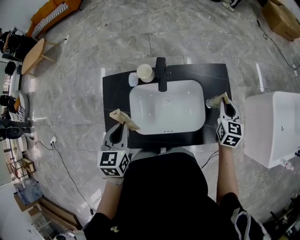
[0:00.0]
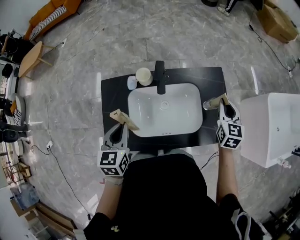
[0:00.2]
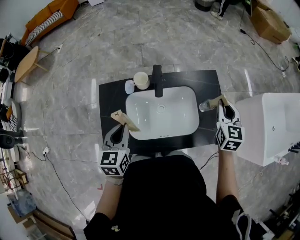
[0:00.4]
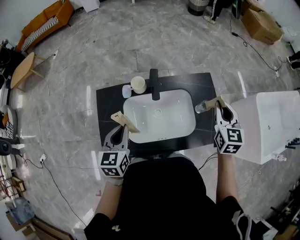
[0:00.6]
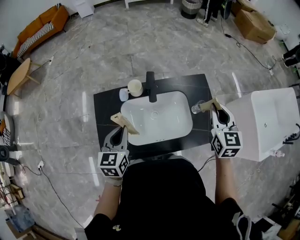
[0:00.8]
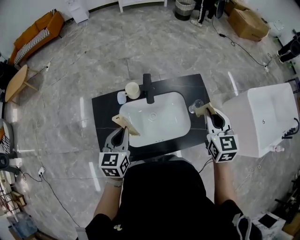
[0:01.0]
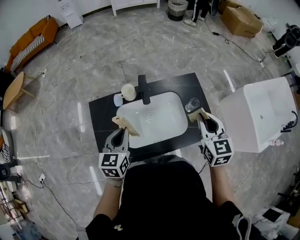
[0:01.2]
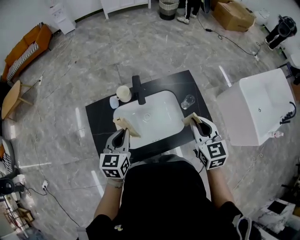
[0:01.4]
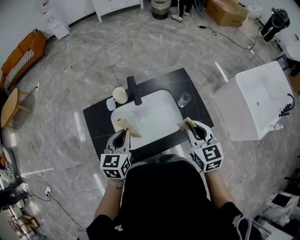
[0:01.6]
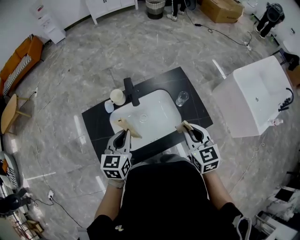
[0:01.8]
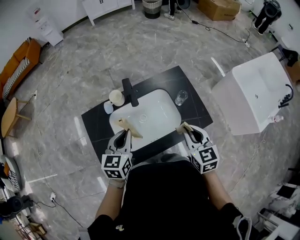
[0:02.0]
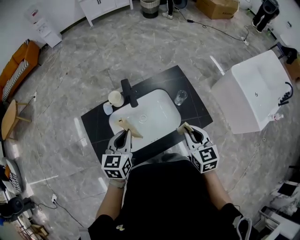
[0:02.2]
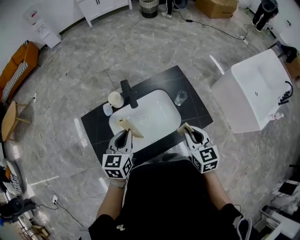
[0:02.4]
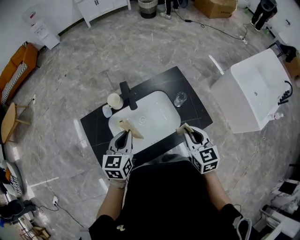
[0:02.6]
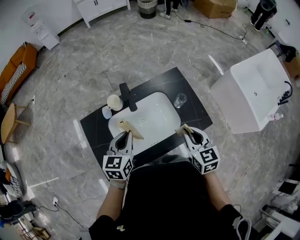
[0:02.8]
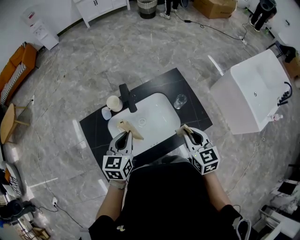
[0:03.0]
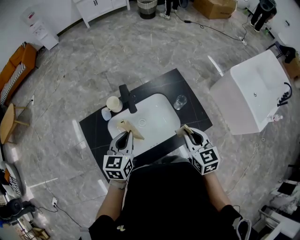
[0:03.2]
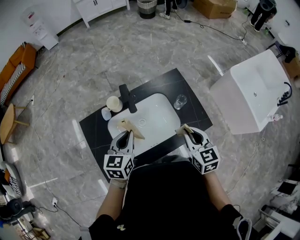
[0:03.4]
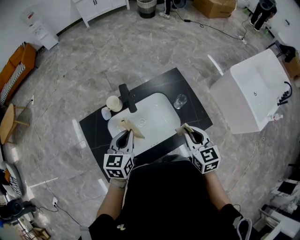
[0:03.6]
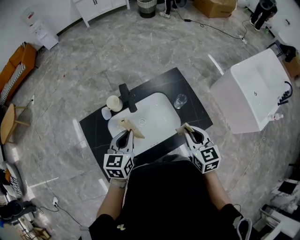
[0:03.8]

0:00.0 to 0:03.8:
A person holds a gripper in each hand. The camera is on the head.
0:00.0 to 0:01.2: The right gripper travels upward, backward and to the left by approximately 20 cm.
0:01.2 to 0:02.6: The right gripper moves downward and backward, about 10 cm, while the left gripper goes about 5 cm to the right.
0:02.6 to 0:03.8: There are only small adjustments of the grippers.

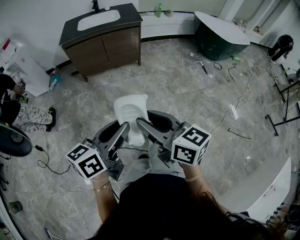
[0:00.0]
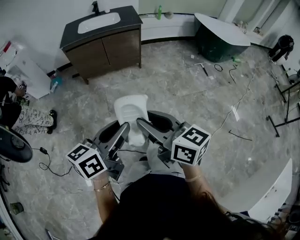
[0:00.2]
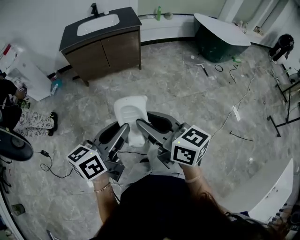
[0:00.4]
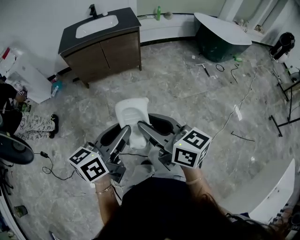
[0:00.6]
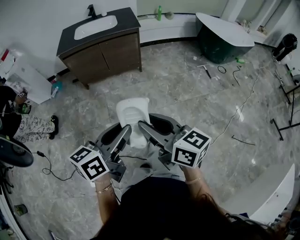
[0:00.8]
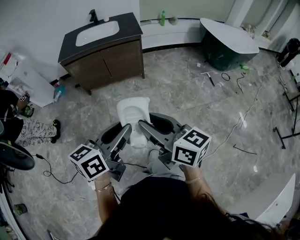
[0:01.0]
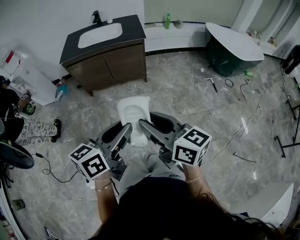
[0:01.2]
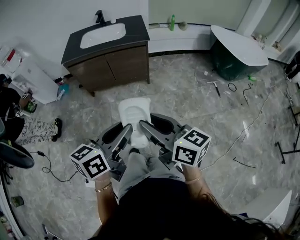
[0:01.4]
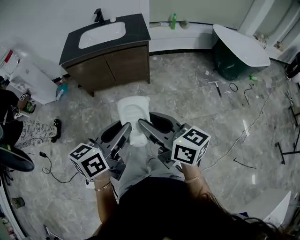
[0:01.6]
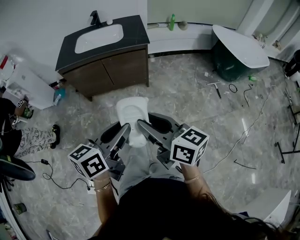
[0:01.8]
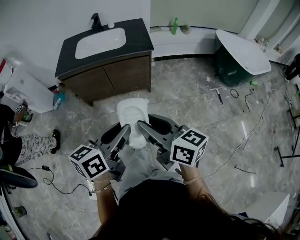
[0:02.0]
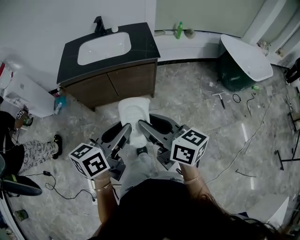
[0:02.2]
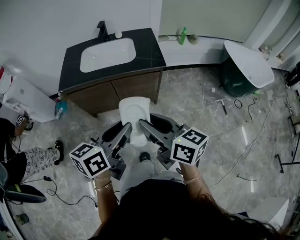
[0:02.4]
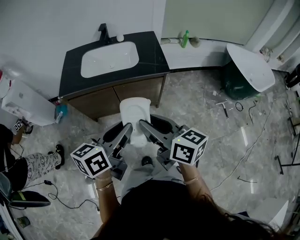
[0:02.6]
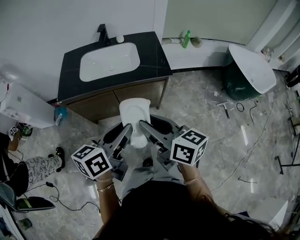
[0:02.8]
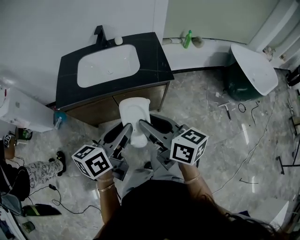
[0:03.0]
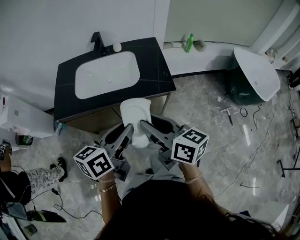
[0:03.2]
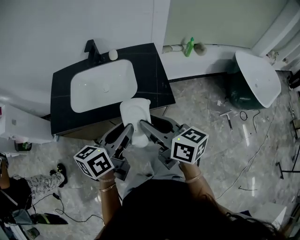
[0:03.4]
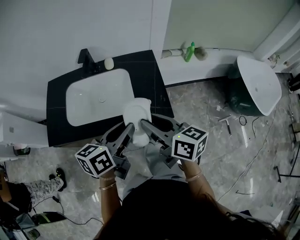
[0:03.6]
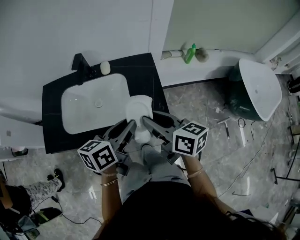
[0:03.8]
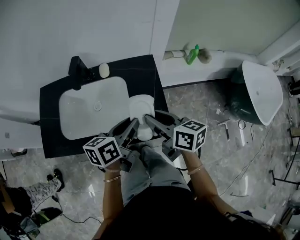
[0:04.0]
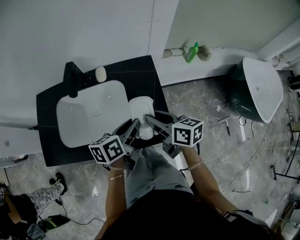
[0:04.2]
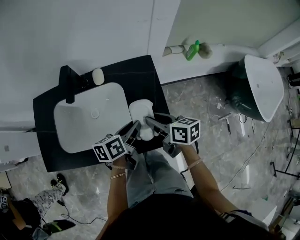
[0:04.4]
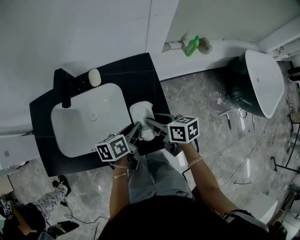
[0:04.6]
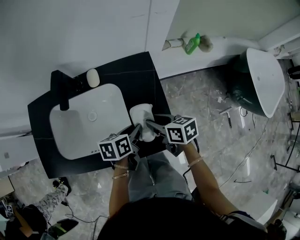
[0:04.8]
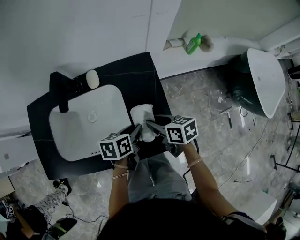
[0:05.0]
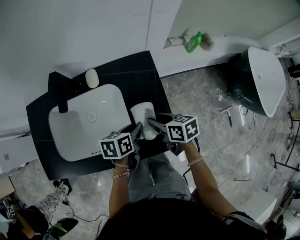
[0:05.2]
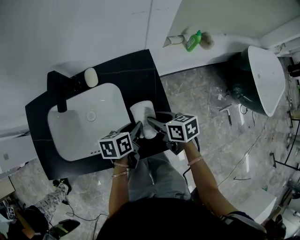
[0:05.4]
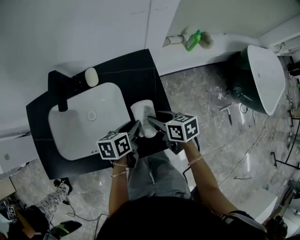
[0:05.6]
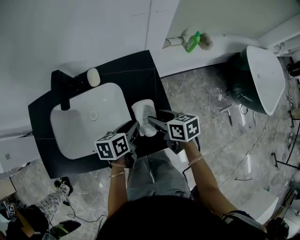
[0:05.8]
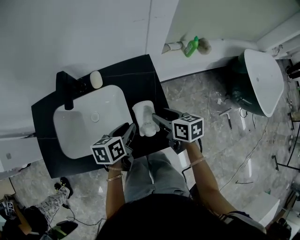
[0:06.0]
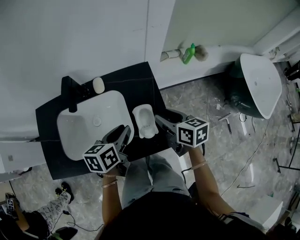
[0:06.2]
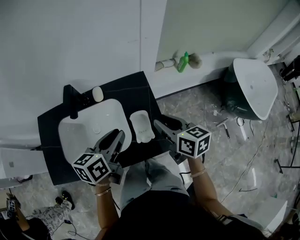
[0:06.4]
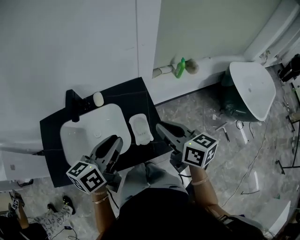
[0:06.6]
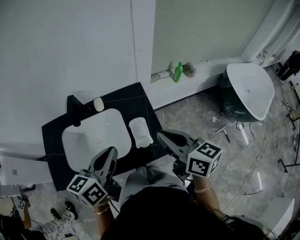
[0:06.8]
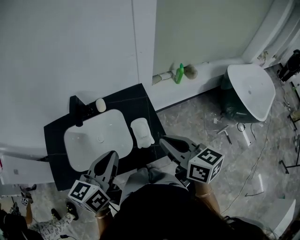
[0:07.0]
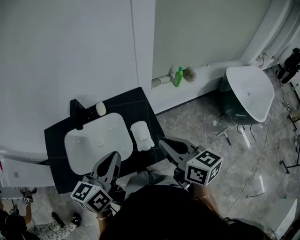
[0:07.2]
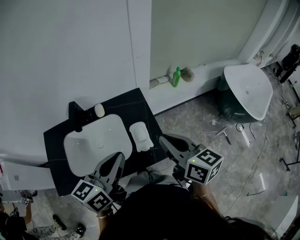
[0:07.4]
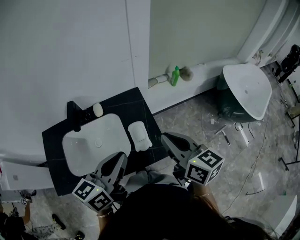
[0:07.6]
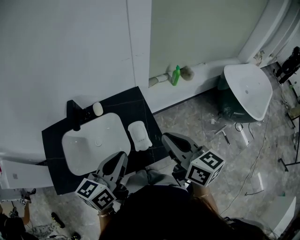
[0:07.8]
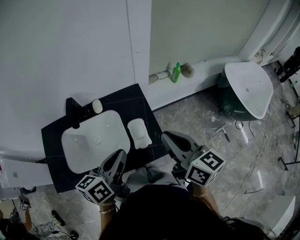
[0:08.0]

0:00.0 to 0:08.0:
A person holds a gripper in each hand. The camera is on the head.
0:00.0 to 0:01.6: The two grippers go approximately 25 cm forward.
0:01.6 to 0:03.2: The pair of grippers is taken forward, approximately 50 cm.
0:03.2 to 0:04.8: Both grippers move forward and downward, roughly 40 cm. The left gripper changes its angle by some 30 degrees; the right gripper changes its angle by about 30 degrees.
0:04.8 to 0:06.4: The grippers both shift upward by approximately 15 cm. The right gripper changes its angle by approximately 20 degrees. Meanwhile the left gripper changes its angle by roughly 20 degrees.
0:06.4 to 0:08.0: The right gripper heads upward and backward, covering roughly 15 cm, and closes its fingers. Meanwhile the left gripper heads backward and upward, covering some 10 cm, and closes up.

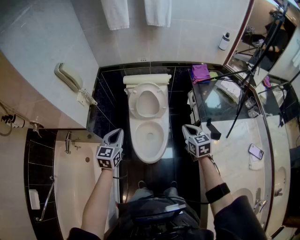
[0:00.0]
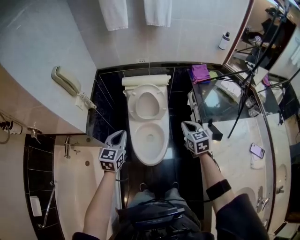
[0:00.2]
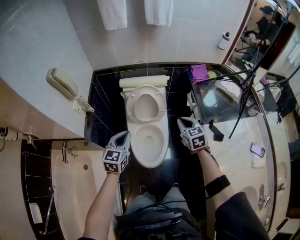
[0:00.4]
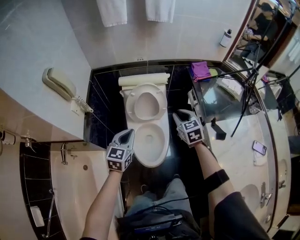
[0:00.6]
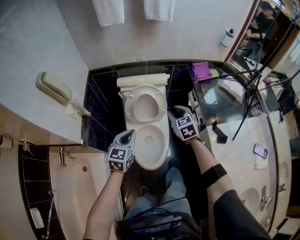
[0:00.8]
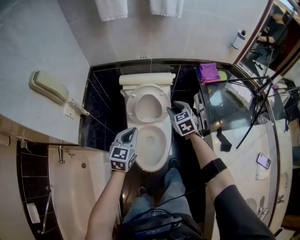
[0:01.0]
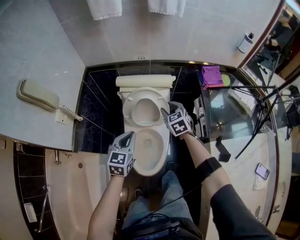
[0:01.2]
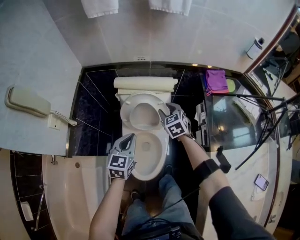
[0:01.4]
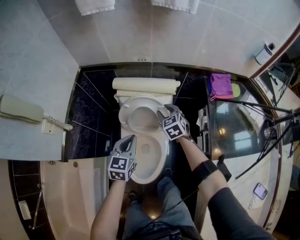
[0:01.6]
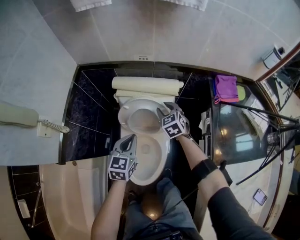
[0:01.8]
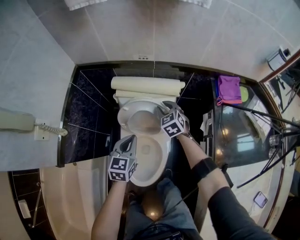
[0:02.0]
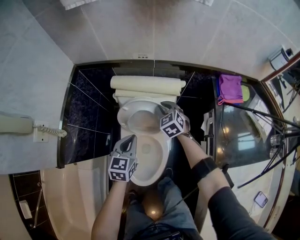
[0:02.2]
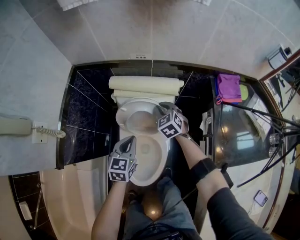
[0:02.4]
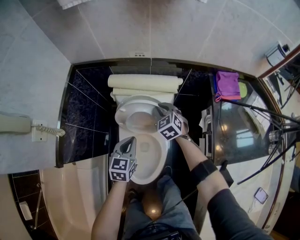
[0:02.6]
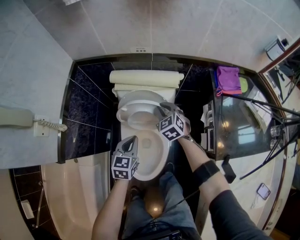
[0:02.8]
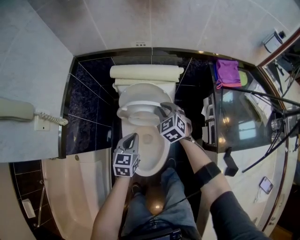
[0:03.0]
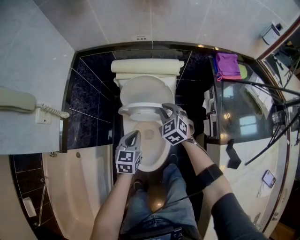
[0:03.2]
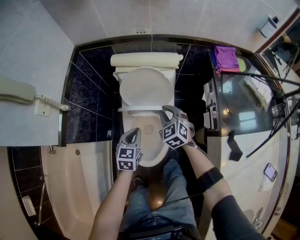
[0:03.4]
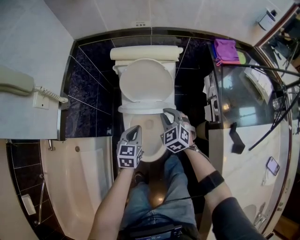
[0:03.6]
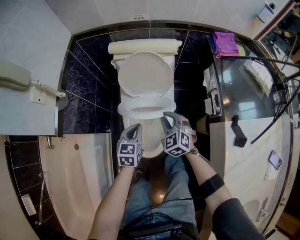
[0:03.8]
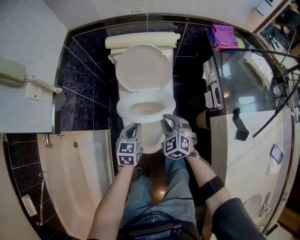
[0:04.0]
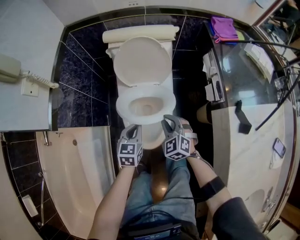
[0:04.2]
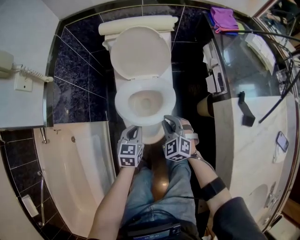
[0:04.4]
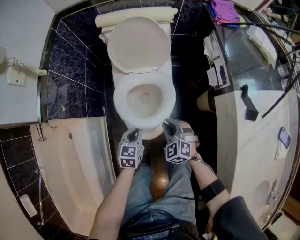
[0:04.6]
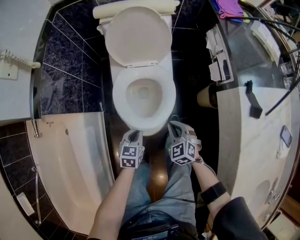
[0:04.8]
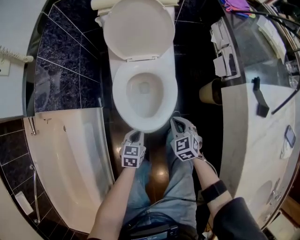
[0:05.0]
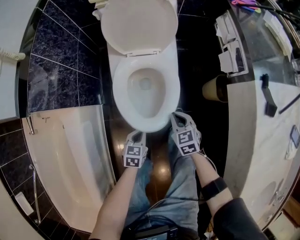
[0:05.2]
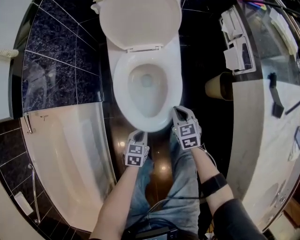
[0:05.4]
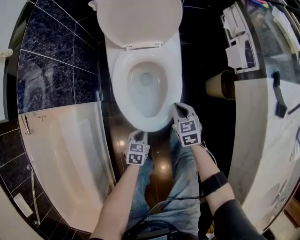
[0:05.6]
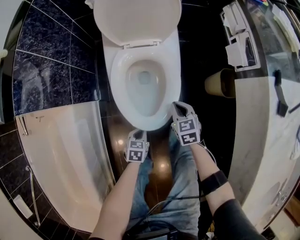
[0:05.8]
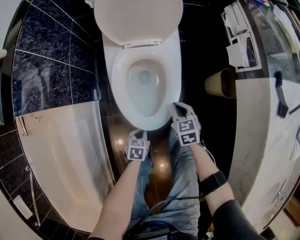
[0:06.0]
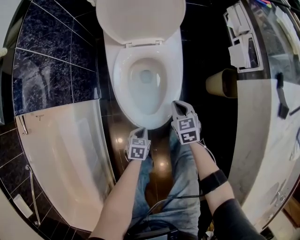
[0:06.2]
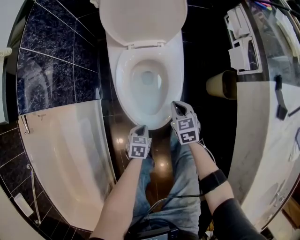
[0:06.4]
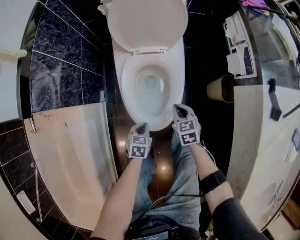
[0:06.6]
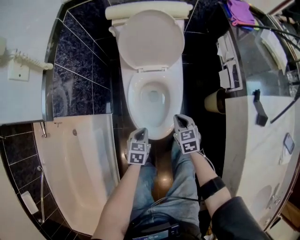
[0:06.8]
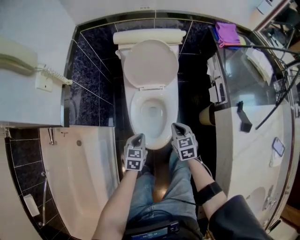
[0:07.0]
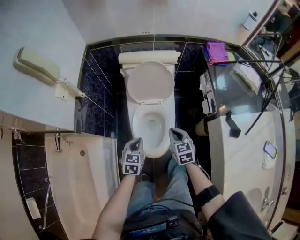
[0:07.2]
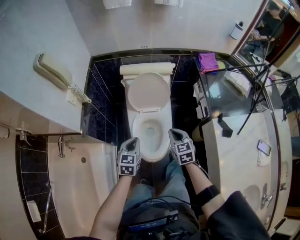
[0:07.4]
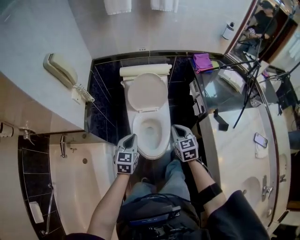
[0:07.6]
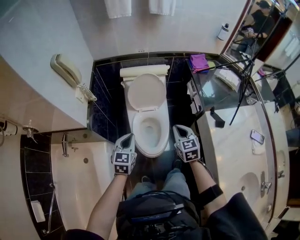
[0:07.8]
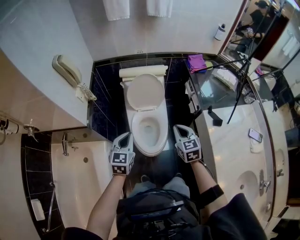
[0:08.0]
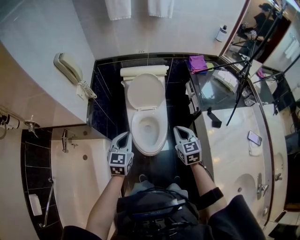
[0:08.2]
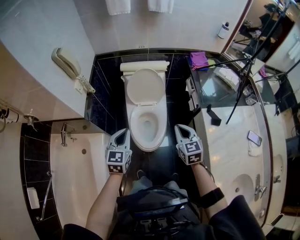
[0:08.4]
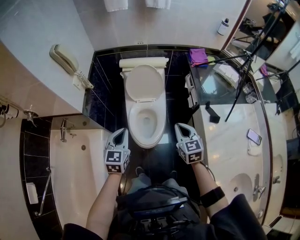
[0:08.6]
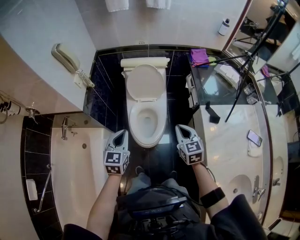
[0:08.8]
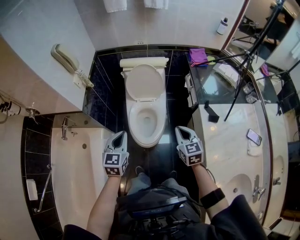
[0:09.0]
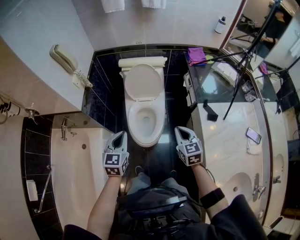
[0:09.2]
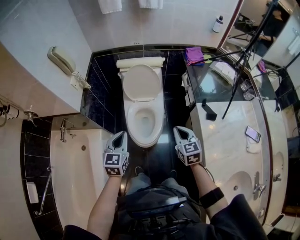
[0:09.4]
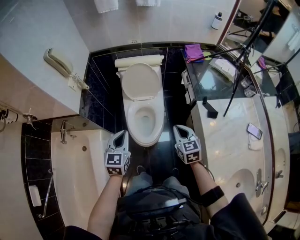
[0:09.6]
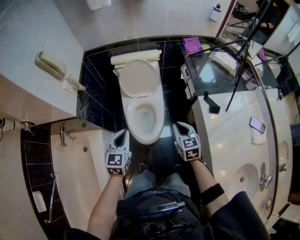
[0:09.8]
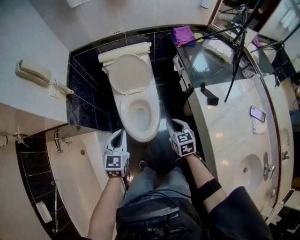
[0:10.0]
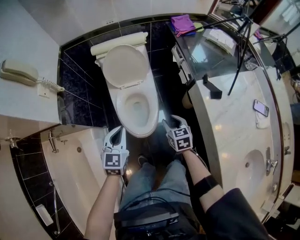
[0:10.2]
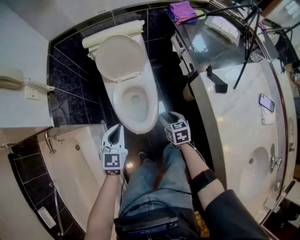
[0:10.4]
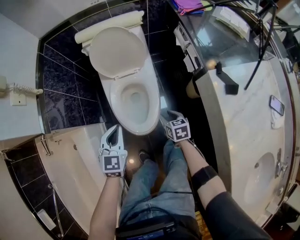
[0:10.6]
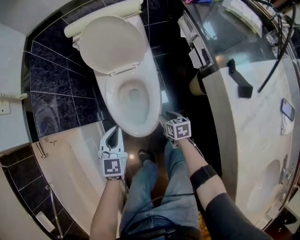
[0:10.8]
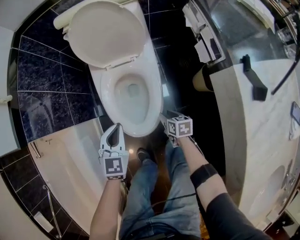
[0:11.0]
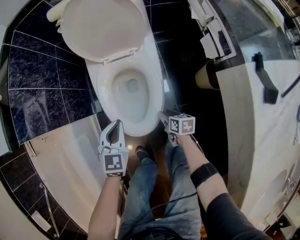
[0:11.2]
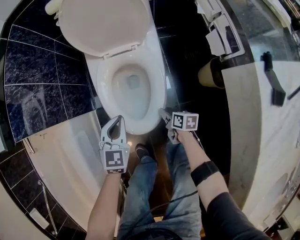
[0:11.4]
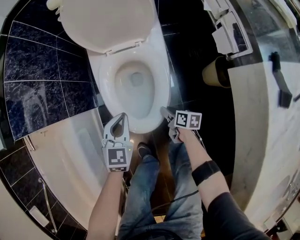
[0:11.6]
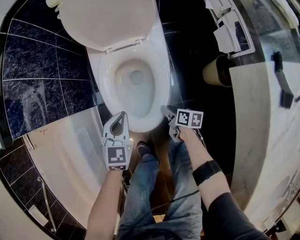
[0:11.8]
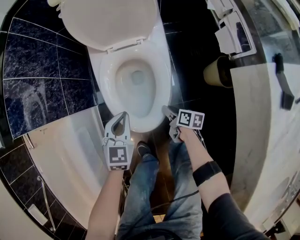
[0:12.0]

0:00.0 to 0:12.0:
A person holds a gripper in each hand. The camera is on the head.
0:00.0 to 0:01.6: Both grippers move forward and downward, about 35 cm. The right gripper turns by roughly 20 degrees, and opens its fingers.
0:01.6 to 0:03.0: The left gripper is displaced downward by some 10 cm. Meanwhile the right gripper goes forward and returns, approximately 5 cm each way, and closes its fingers.
0:03.0 to 0:04.4: The left gripper shifts approximately 20 cm backward and downward. Meanwhile the right gripper goes about 30 cm backward.
0:04.4 to 0:06.0: The left gripper shifts roughly 30 cm downward and backward, and changes its angle by about 30 degrees. Meanwhile the right gripper heads downward, covering roughly 20 cm, and swivels roughly 40 degrees.
0:06.0 to 0:07.6: The grippers both shift upward by about 50 cm. The left gripper tips its fingers upward by approximately 30 degrees.
0:07.6 to 0:09.0: The right gripper travels backward, to the right and upward by about 15 cm, while the left gripper is displaced backward and upward by approximately 15 cm.
0:09.0 to 0:10.4: The right gripper heads downward, covering roughly 25 cm, turns by about 30 degrees, and opens its fingers. Meanwhile the left gripper moves downward and forward, approximately 15 cm.
0:10.4 to 0:12.0: Both grippers travel together downward, about 35 cm. The right gripper twists some 40 degrees clockwise, seen from behind.
